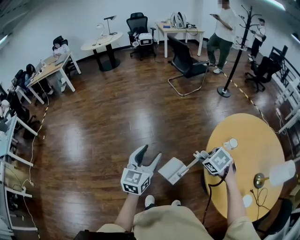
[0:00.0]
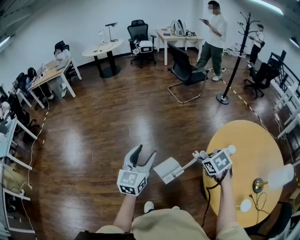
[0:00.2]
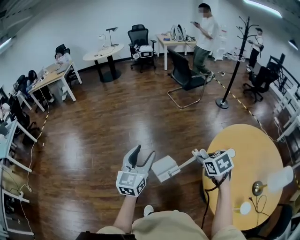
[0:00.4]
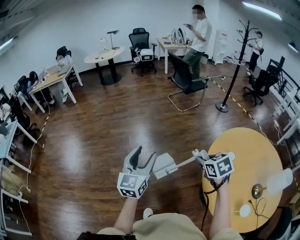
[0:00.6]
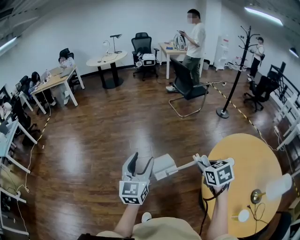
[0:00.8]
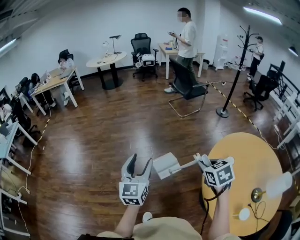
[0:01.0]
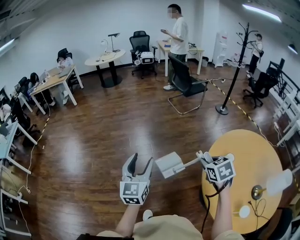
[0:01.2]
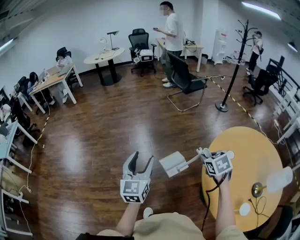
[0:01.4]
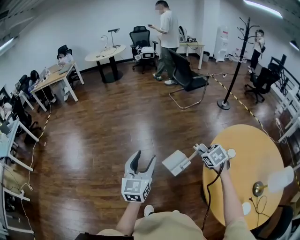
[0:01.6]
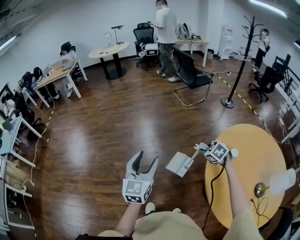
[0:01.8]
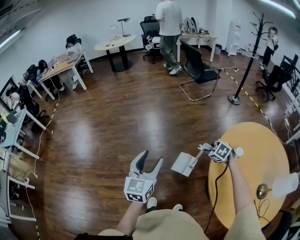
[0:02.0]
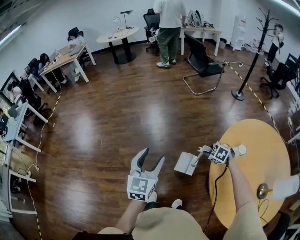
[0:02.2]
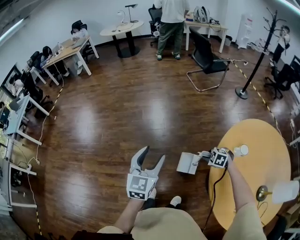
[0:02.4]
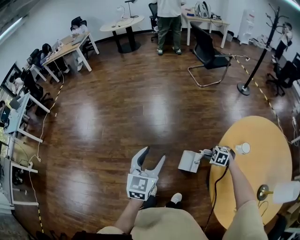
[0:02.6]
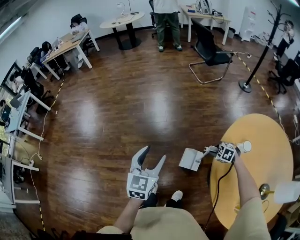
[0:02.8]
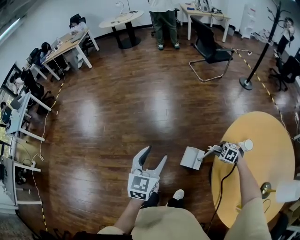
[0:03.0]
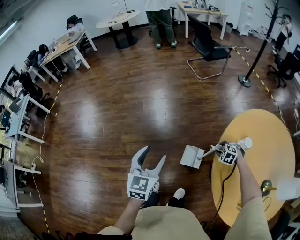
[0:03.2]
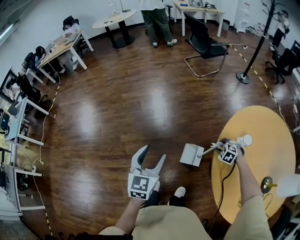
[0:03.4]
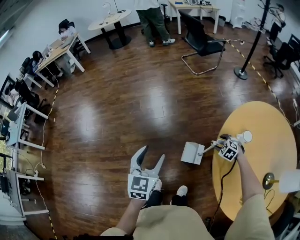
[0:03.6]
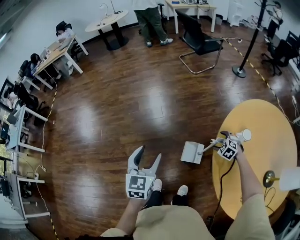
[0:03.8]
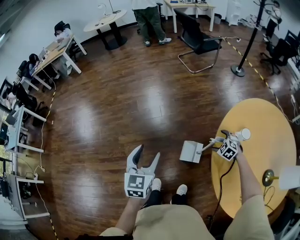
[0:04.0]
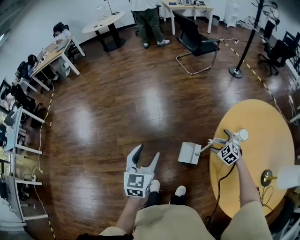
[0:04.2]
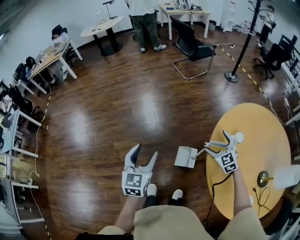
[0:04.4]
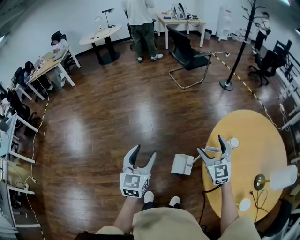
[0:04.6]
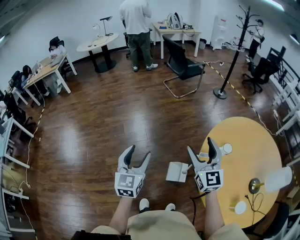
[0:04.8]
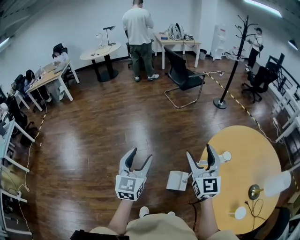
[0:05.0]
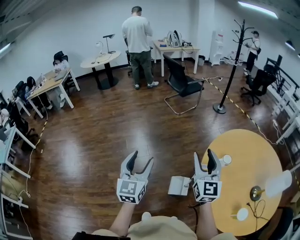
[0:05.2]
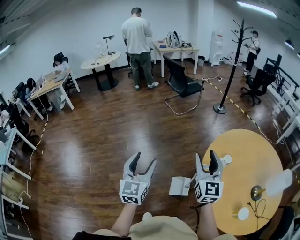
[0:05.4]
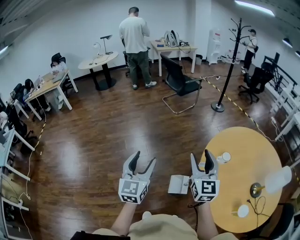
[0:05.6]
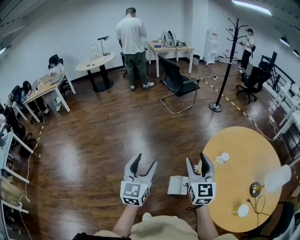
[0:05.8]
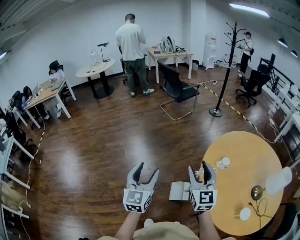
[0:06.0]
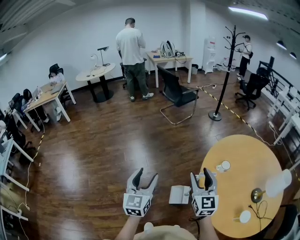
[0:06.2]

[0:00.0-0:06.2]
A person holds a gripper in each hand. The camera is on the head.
0:00.0 to 0:01.6: The right gripper moves forward, about 10 cm, and moves some 10 cm upward and comes back.
0:01.6 to 0:03.2: The right gripper travels downward by about 25 cm, and rotates about 40 degrees. The left gripper is displaced downward by roughly 10 cm.
0:03.2 to 0:04.6: The right gripper is displaced upward by some 30 cm, angles its fingers upward, by approximately 60 degrees, and opens up.
0:04.6 to 0:06.2: The left gripper moves upward, approximately 5 cm. Meanwhile the right gripper is displaced upward and backward by about 10 cm, changes its angle by approximately 20 degrees, and closes.

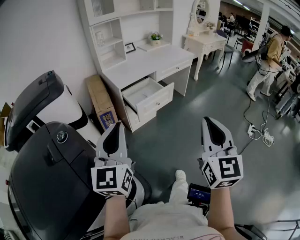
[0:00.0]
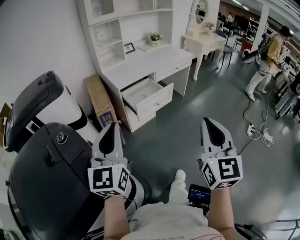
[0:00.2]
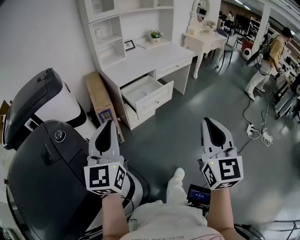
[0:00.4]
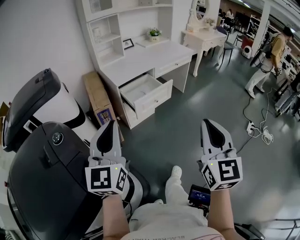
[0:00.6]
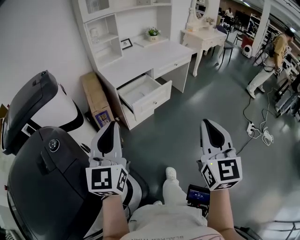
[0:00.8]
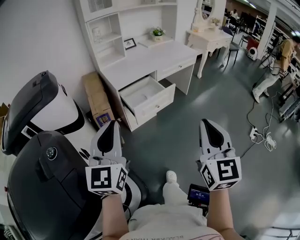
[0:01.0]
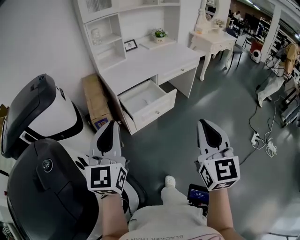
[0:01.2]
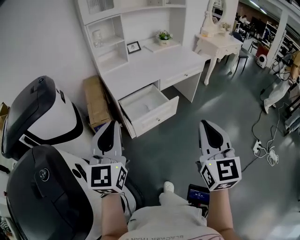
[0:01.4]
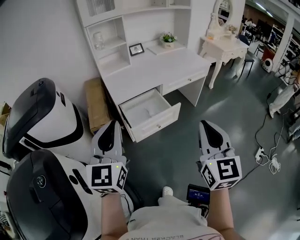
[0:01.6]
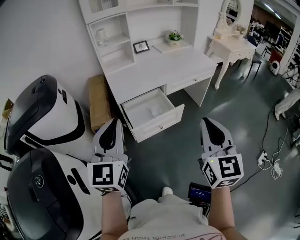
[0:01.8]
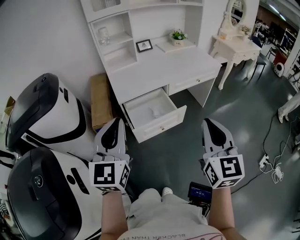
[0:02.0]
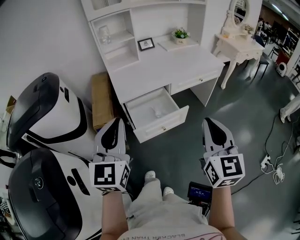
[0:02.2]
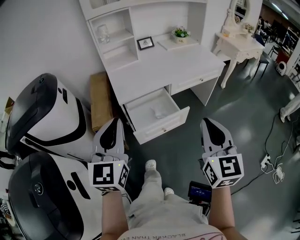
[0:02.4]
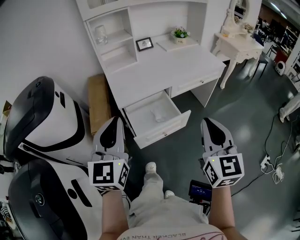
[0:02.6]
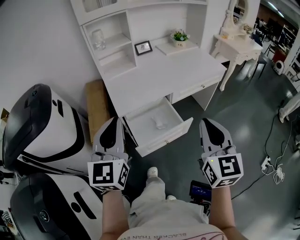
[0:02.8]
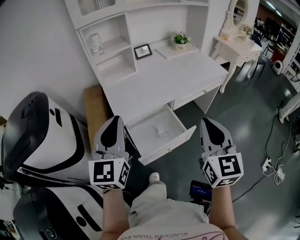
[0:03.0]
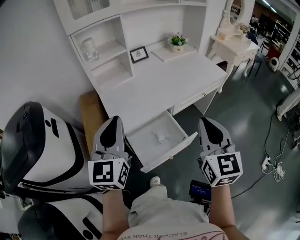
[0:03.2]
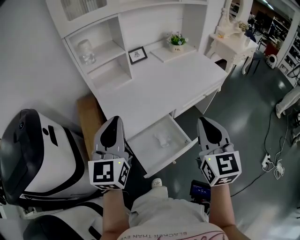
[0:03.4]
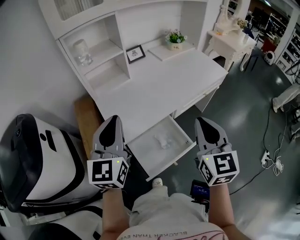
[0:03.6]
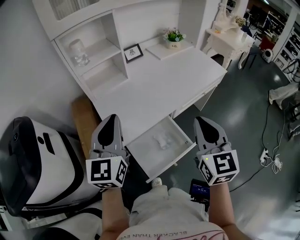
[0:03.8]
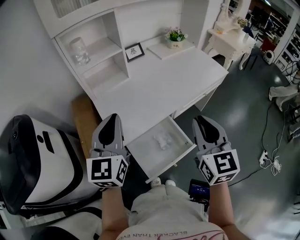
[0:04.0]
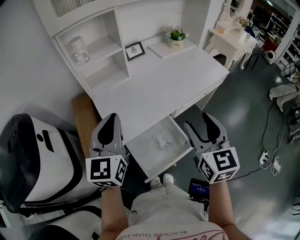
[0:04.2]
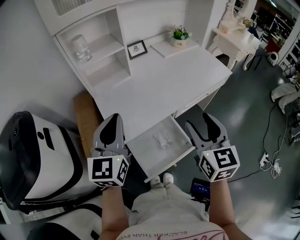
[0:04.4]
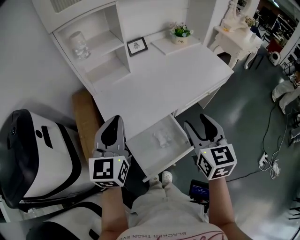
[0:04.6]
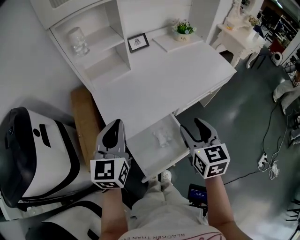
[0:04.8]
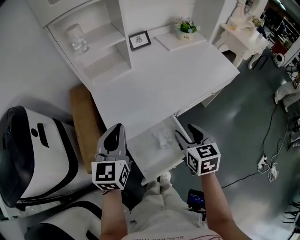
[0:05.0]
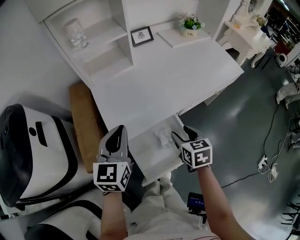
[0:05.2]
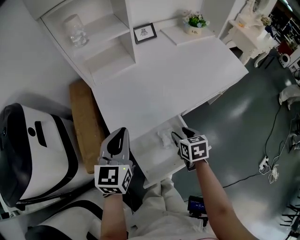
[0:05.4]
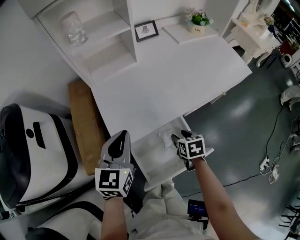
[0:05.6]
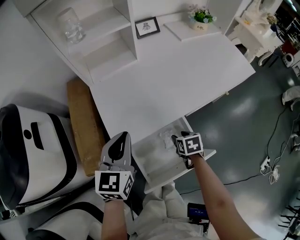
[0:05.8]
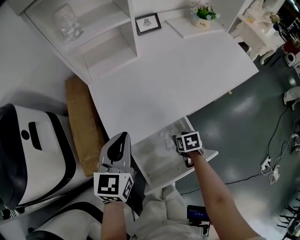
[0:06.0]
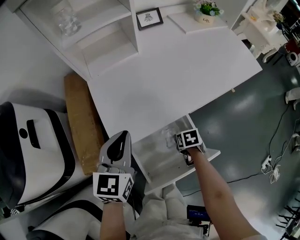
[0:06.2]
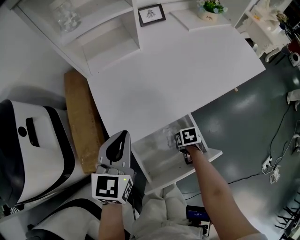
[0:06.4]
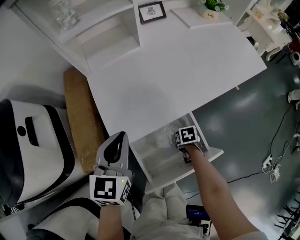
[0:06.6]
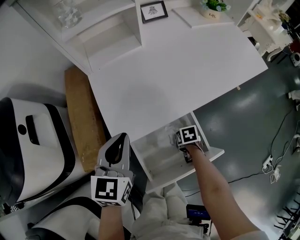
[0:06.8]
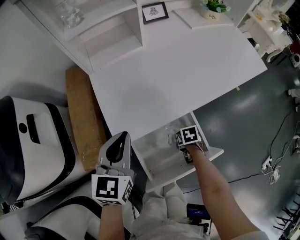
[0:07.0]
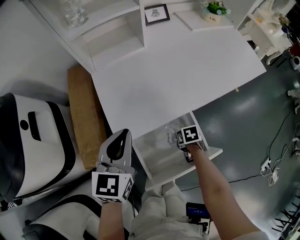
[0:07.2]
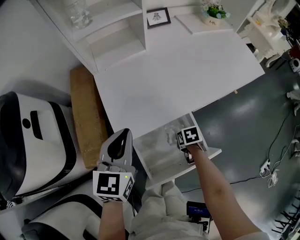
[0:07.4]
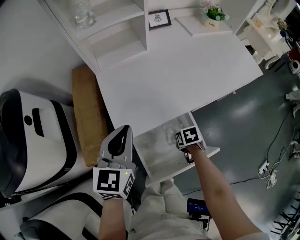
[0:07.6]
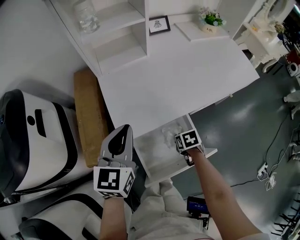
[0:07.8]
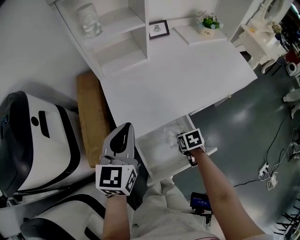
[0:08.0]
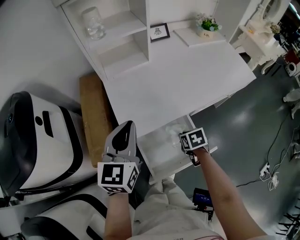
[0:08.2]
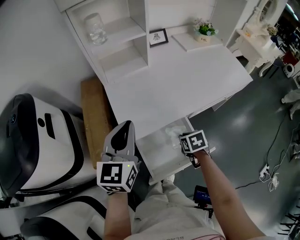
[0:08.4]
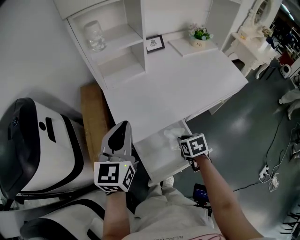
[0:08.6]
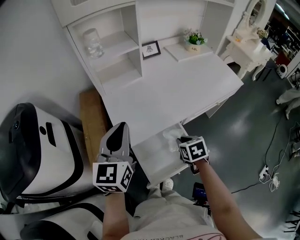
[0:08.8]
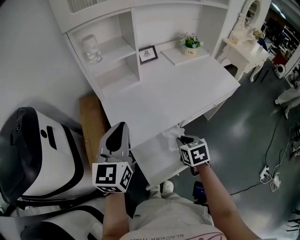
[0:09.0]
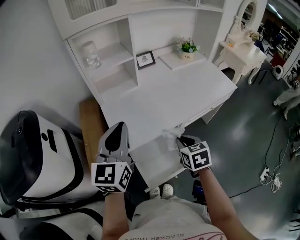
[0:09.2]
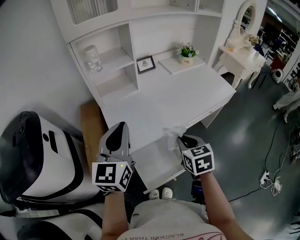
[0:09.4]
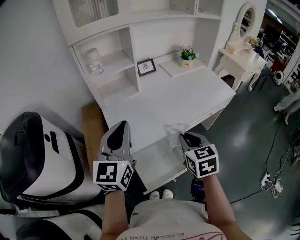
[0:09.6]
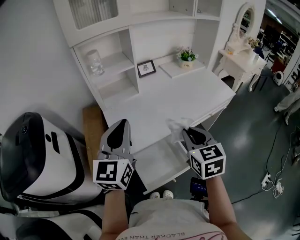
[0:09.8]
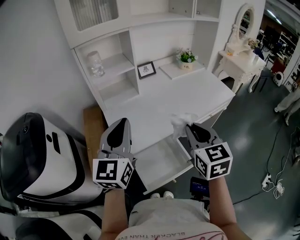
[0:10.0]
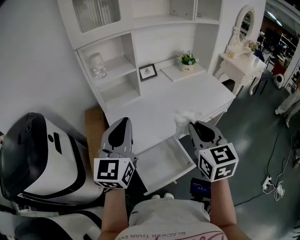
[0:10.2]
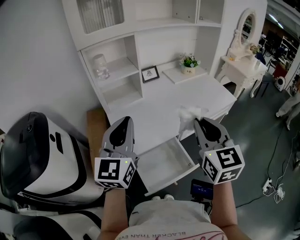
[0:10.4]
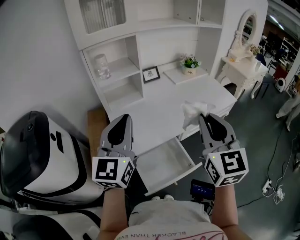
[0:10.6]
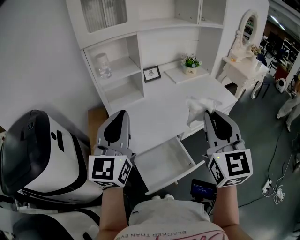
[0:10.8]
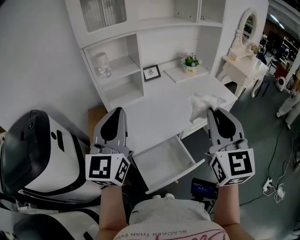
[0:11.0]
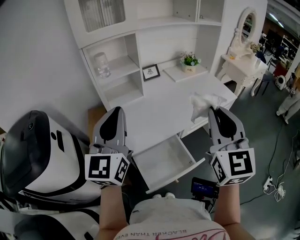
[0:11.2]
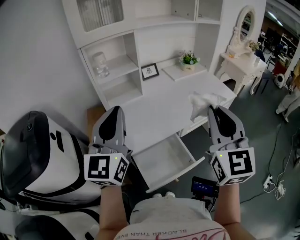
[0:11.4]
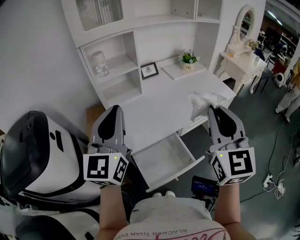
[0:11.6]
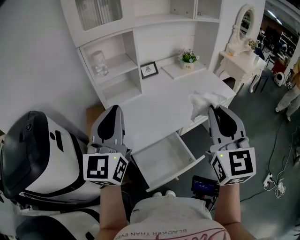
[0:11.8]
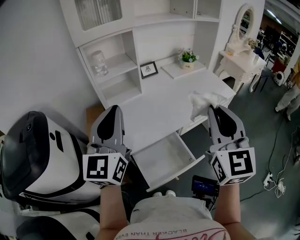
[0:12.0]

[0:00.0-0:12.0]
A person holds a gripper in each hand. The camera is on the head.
0:00.0 to 0:01.6: Both grippers travel together forward, some 25 cm.
0:01.6 to 0:03.0: Both grippers travel together forward, about 25 cm.
0:03.0 to 0:04.4: The two grippers go some 15 cm forward. The right gripper opens.
0:04.4 to 0:06.0: The left gripper heads downward, covering about 15 cm. Meanwhile the right gripper moves downward, approximately 40 cm, and angles its fingers downward, by about 50 degrees.
0:06.0 to 0:07.6: The right gripper closes its fingers.
0:07.6 to 0:09.0: The left gripper is displaced upward by roughly 15 cm. Meanwhile the right gripper is displaced upward by some 20 cm, and turns by some 30 degrees.
0:09.0 to 0:10.4: The left gripper goes some 10 cm upward; the right gripper moves upward, some 30 cm, and points its fingers roughly 40 degrees further upward.
0:10.4 to 0:12.0: The left gripper ends up some 5 cm from where it was, while the right gripper moves upward, some 5 cm.

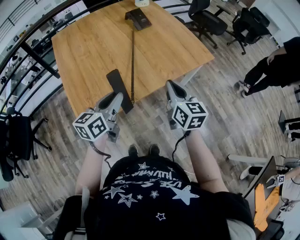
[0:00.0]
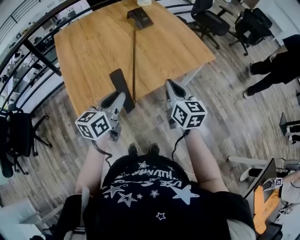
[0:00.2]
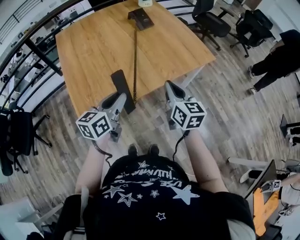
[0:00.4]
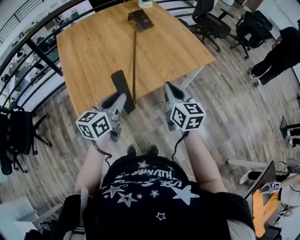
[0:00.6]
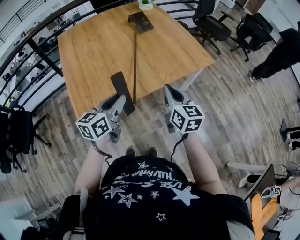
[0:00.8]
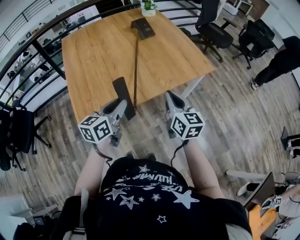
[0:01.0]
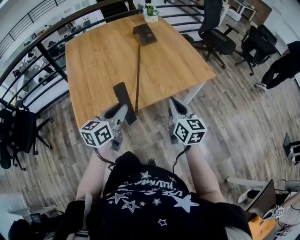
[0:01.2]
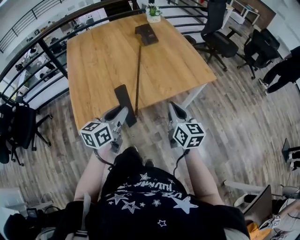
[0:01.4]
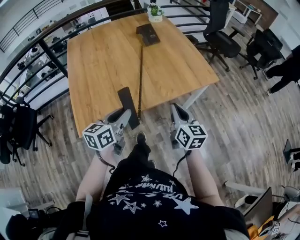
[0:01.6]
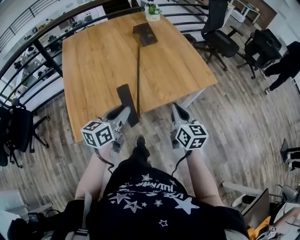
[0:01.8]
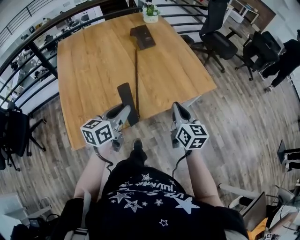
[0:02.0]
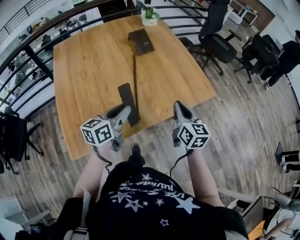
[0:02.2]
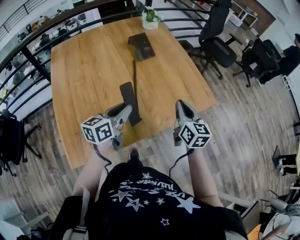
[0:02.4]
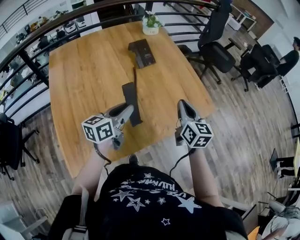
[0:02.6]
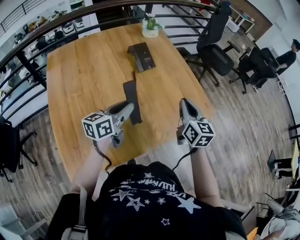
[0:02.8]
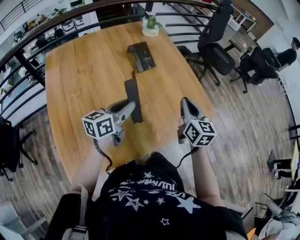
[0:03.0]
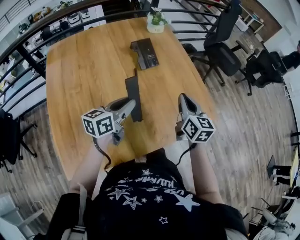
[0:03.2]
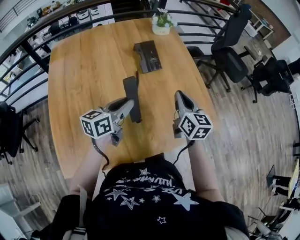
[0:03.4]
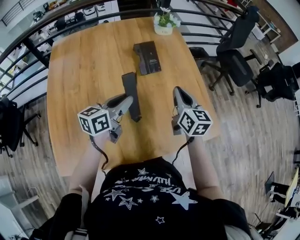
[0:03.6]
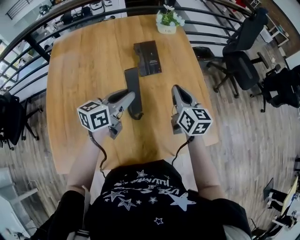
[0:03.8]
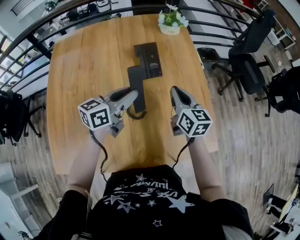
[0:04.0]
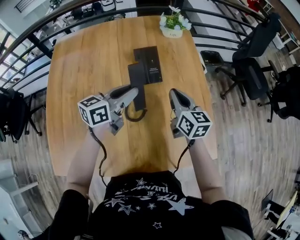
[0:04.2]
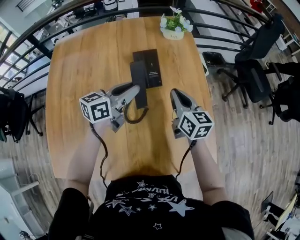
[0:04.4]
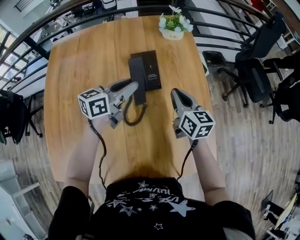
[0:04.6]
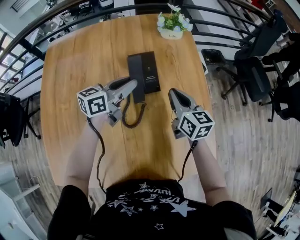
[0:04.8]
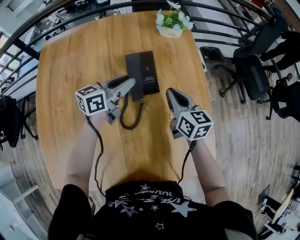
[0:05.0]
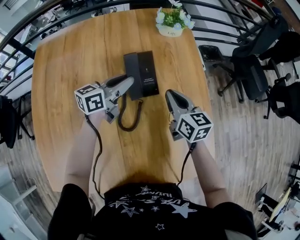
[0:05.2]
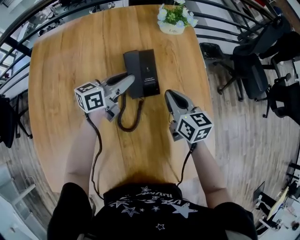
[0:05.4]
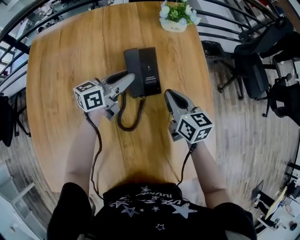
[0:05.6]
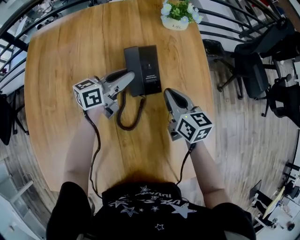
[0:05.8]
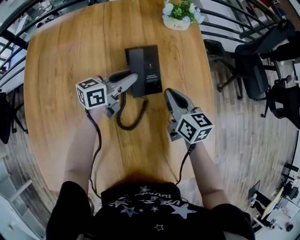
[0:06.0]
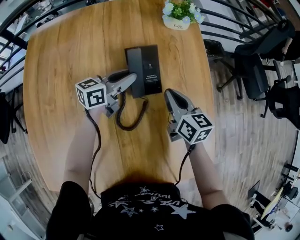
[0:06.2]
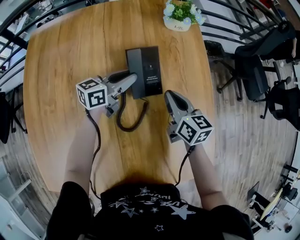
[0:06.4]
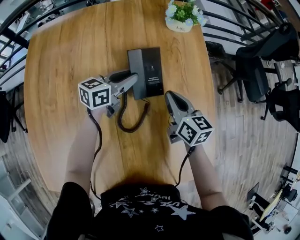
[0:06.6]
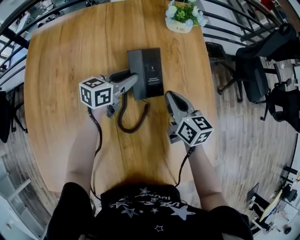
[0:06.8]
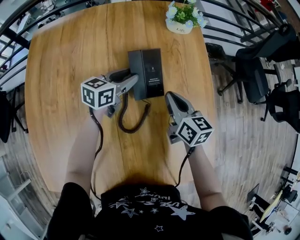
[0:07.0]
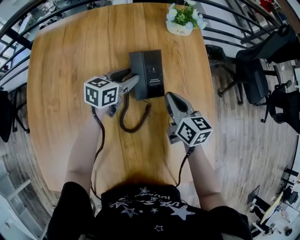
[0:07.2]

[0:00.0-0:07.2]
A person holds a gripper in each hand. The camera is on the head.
0:00.0 to 0:01.4: Both grippers travel together to the right, about 5 cm.
0:01.4 to 0:02.8: Both grippers travel together forward, some 25 cm.
0:02.8 to 0:04.4: Both grippers travel together forward, some 25 cm. The right gripper rotates some 30 degrees.
0:04.4 to 0:05.8: The left gripper travels forward and downward by approximately 15 cm, while the right gripper travels downward and forward by roughly 10 cm.
0:05.8 to 0:07.2: The left gripper rotates about 20 degrees, and opens its fingers.
